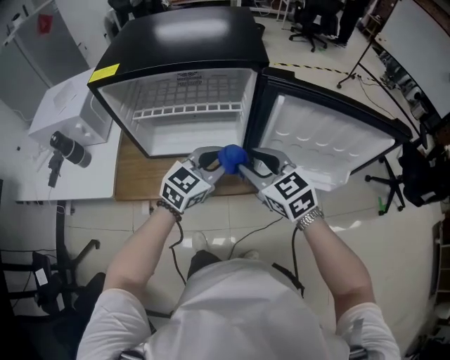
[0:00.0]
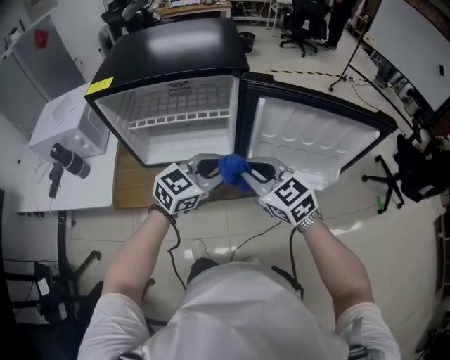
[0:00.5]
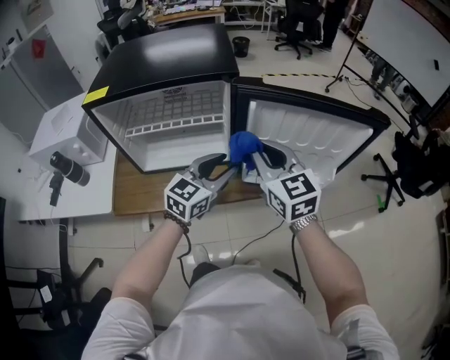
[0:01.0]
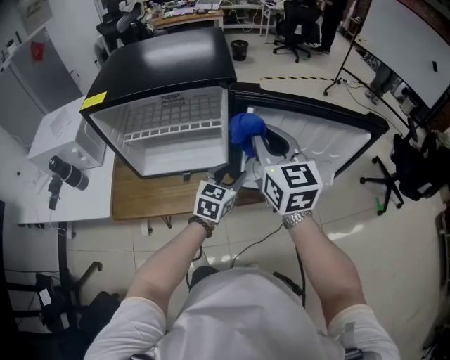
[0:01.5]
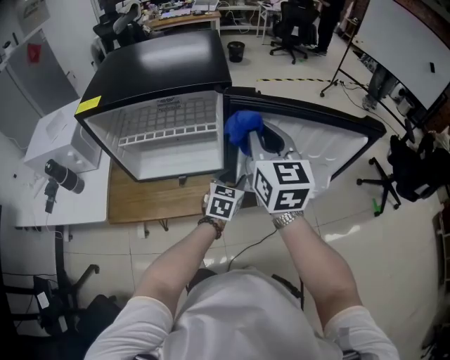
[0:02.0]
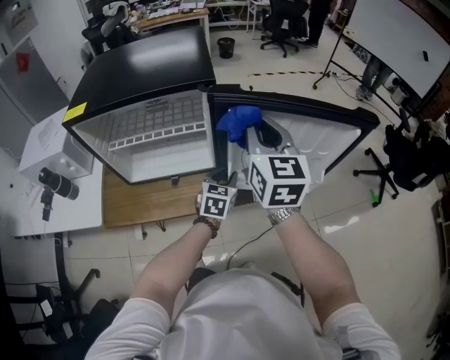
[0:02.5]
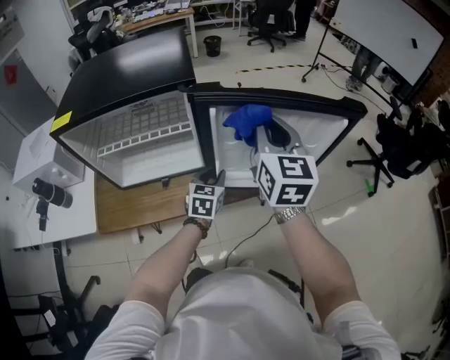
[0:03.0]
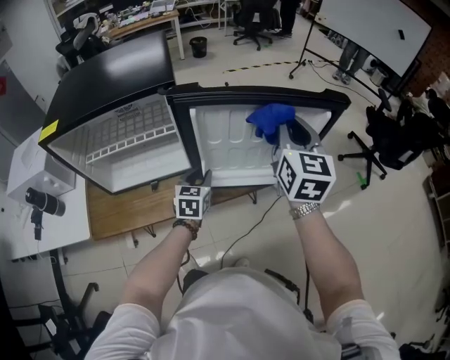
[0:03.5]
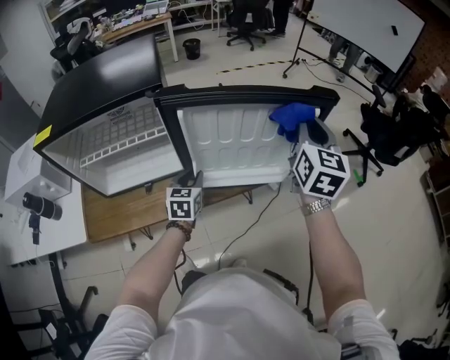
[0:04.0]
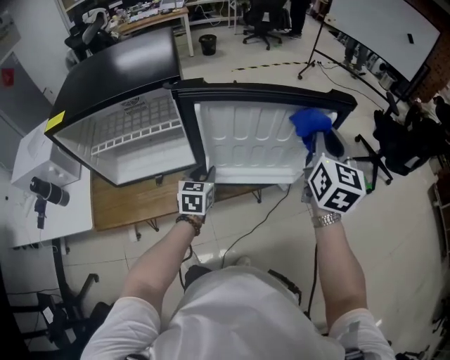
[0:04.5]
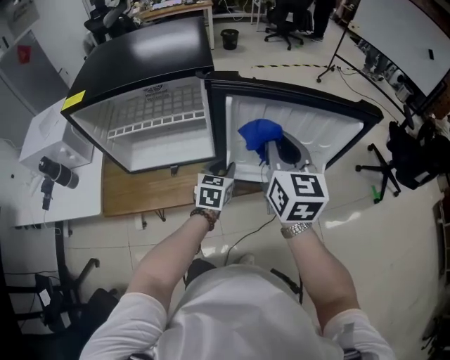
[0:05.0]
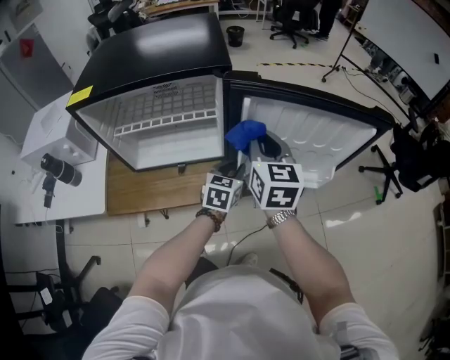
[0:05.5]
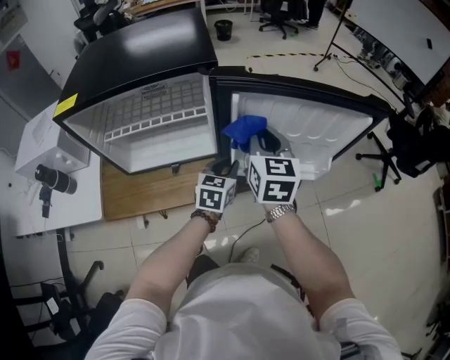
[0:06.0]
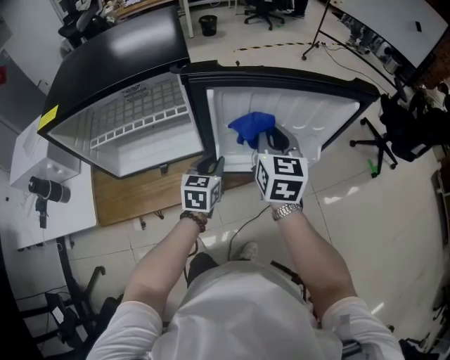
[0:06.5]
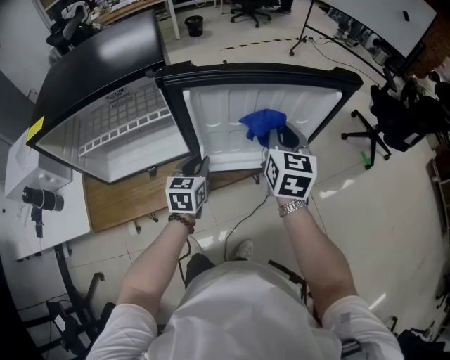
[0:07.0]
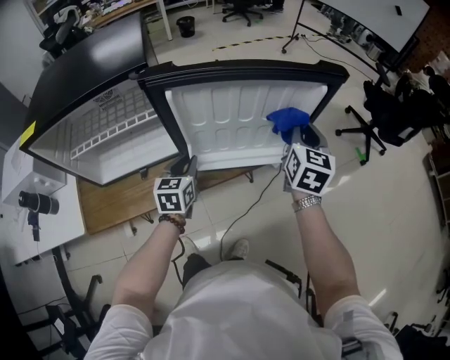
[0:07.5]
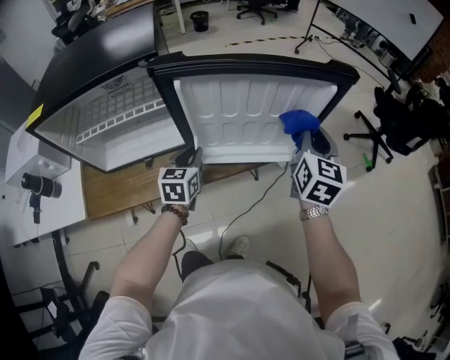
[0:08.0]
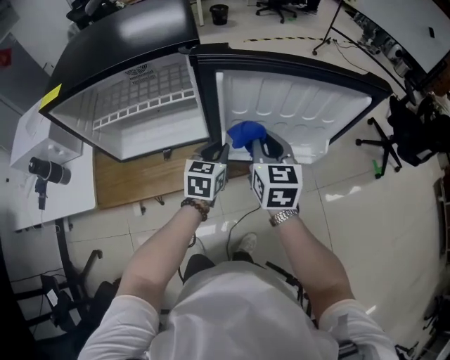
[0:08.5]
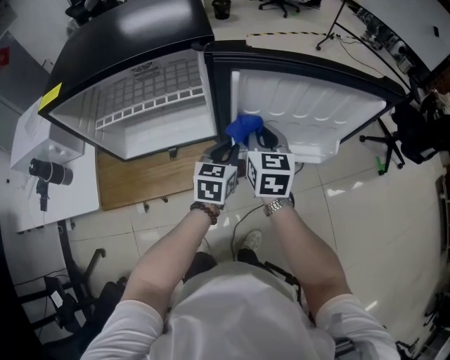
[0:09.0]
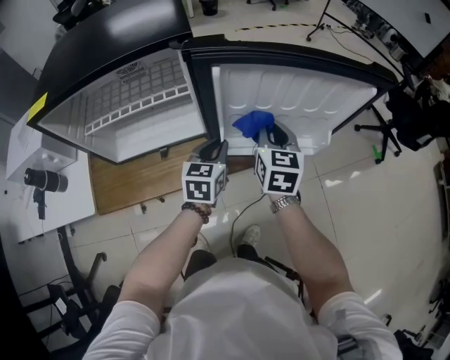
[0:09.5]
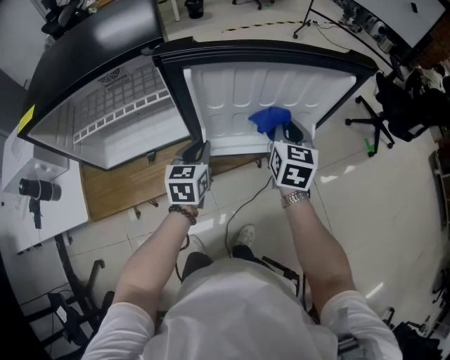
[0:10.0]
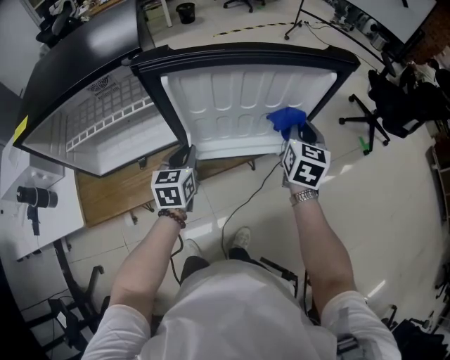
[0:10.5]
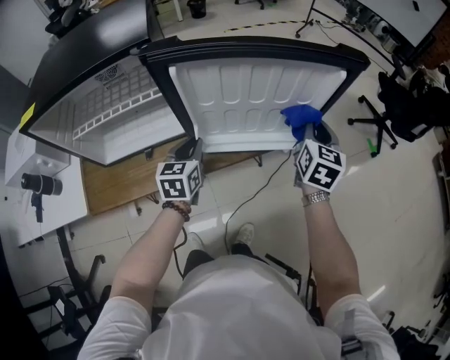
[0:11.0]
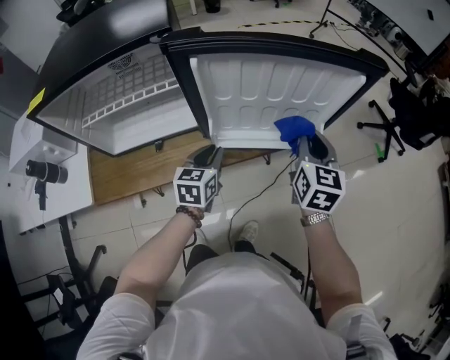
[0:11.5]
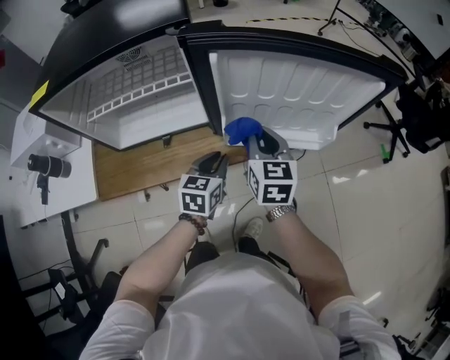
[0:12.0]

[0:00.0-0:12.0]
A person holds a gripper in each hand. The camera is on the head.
0:00.0 to 0:02.0: The right gripper is displaced upward, to the right and forward by roughly 20 cm, swivels roughly 40 degrees, and closes. The left gripper heads downward, to the right and forward, covering some 15 cm, swivels approximately 20 degrees, and opens up.
0:02.0 to 0:04.0: The right gripper travels to the right by about 25 cm, and rotates some 30 degrees.
0:04.0 to 0:06.0: The right gripper moves to the left and downward, about 25 cm.
0:06.0 to 0:08.0: The right gripper goes some 25 cm to the right.
0:08.0 to 0:10.0: The right gripper is displaced to the left and downward by some 10 cm.
0:10.0 to 0:12.0: The right gripper shifts some 15 cm to the left and backward. The left gripper shifts roughly 5 cm backward.

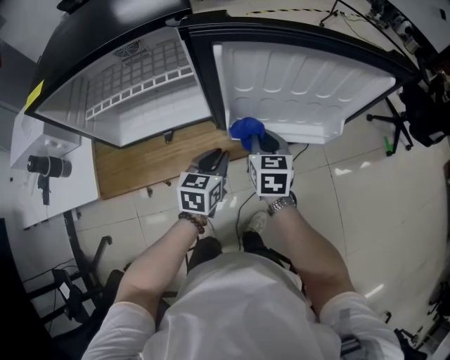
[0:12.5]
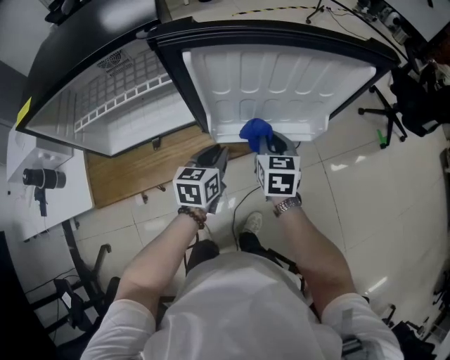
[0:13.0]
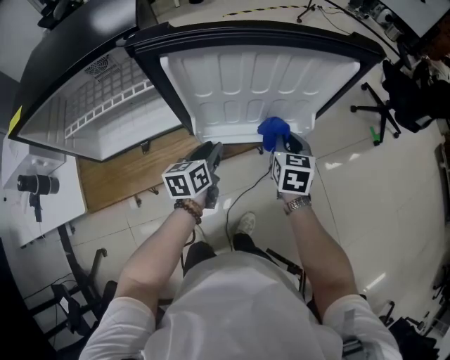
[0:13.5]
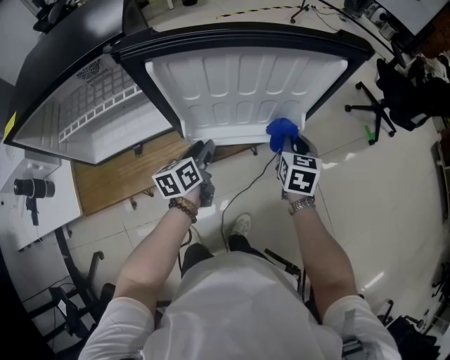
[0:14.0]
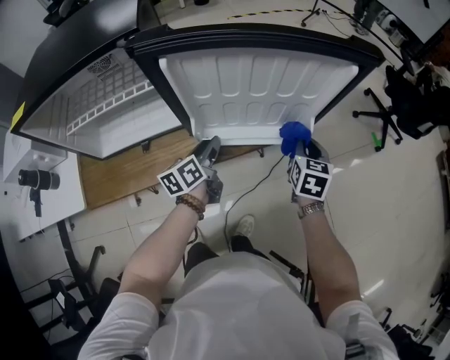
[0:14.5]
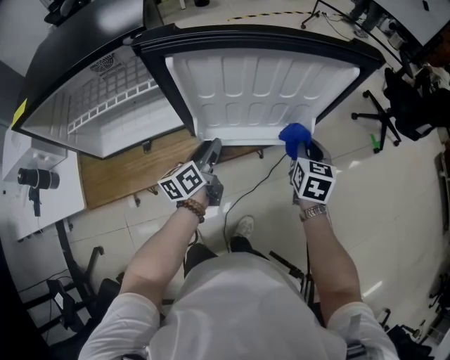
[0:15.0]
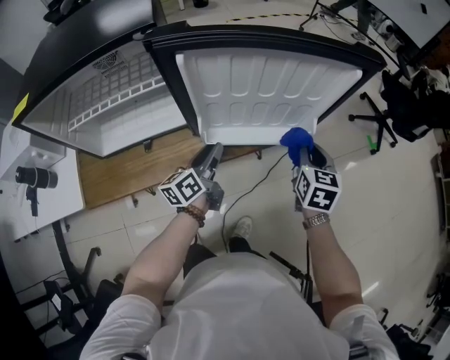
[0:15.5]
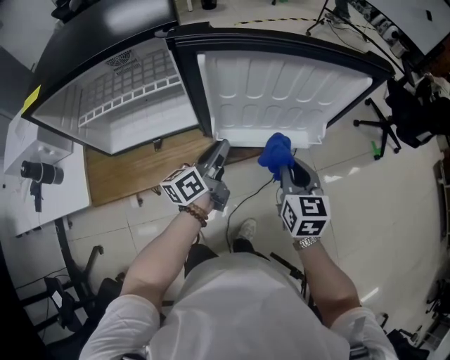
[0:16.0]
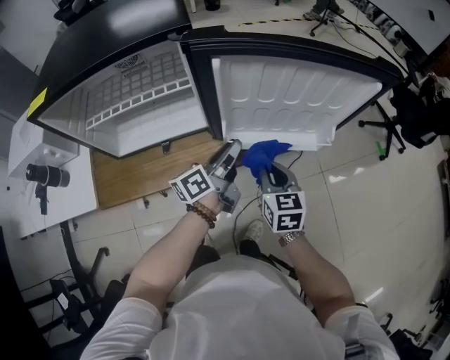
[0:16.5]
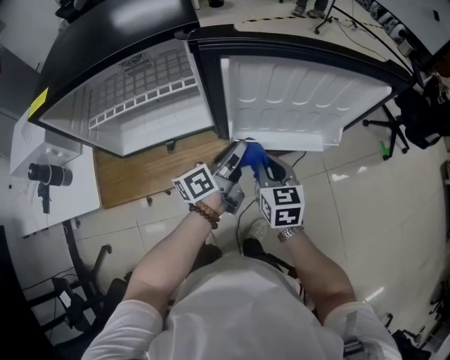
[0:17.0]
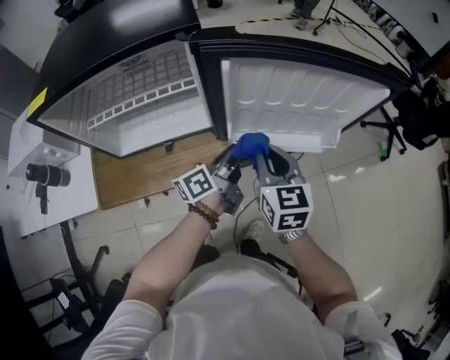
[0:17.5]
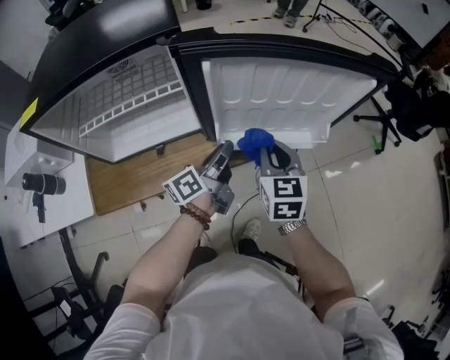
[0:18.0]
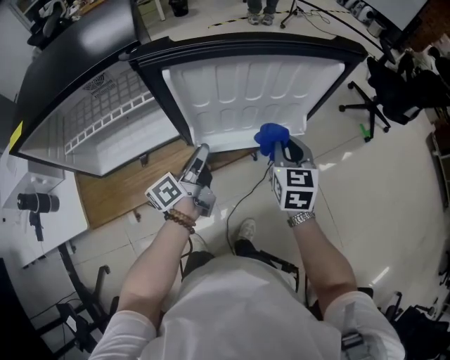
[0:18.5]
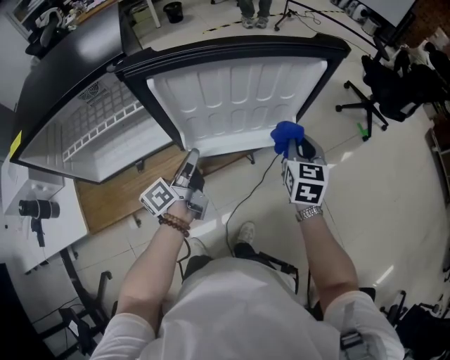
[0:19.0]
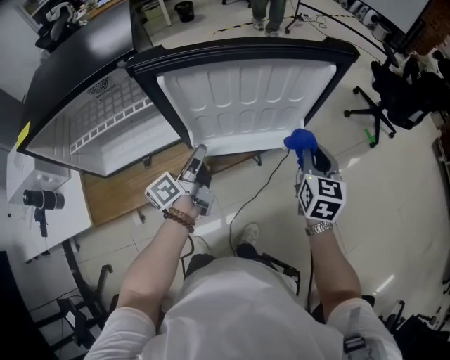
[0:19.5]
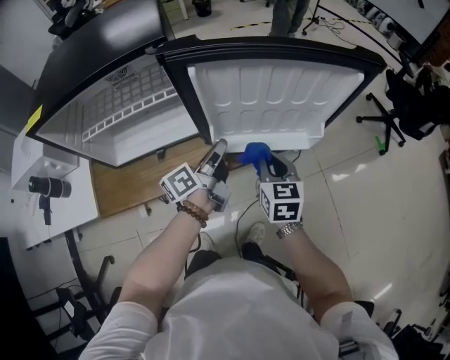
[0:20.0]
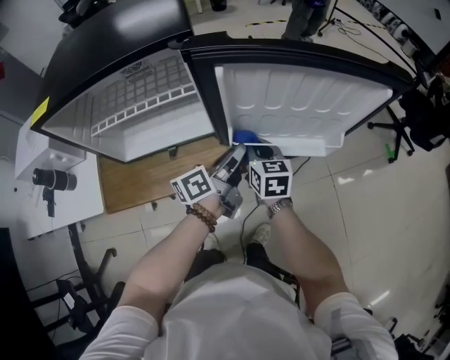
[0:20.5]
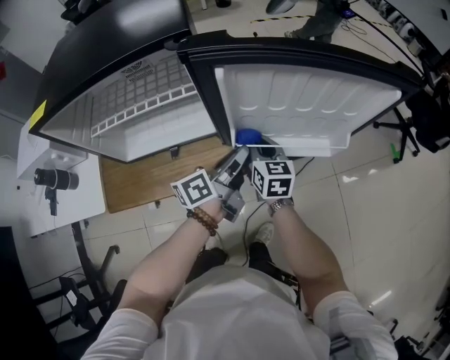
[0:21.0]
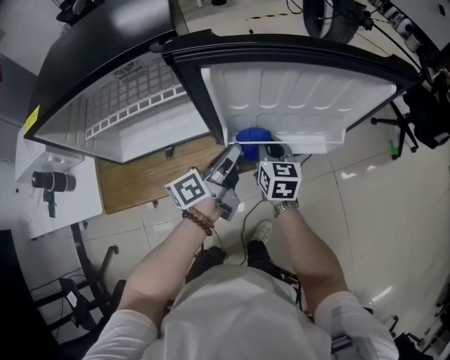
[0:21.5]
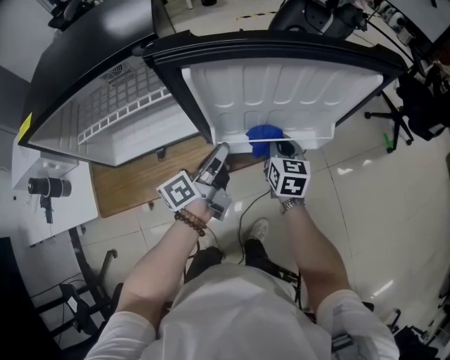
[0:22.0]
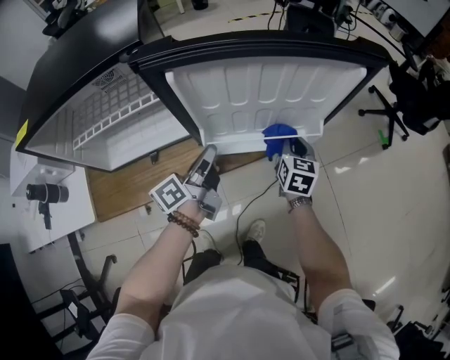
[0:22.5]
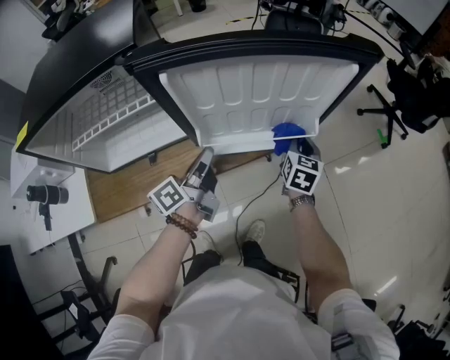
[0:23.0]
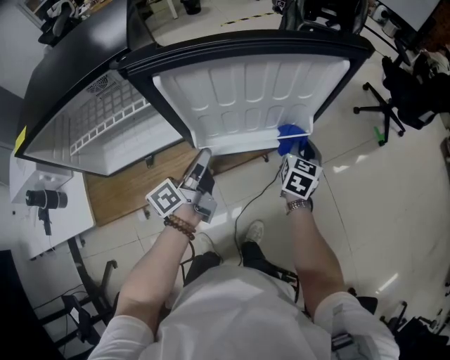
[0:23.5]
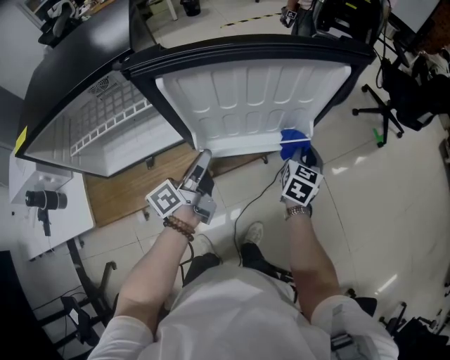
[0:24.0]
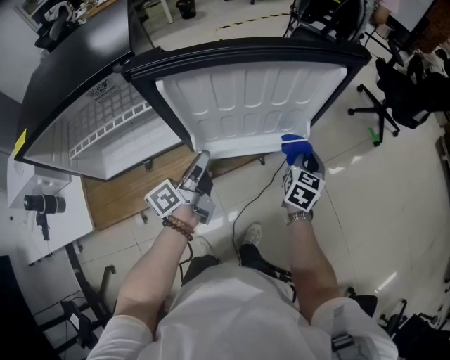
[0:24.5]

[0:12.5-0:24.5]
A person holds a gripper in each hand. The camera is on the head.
0:12.5 to 0:14.5: The right gripper goes about 20 cm to the right, while the left gripper travels forward by roughly 5 cm, turns by approximately 40 degrees, and opens.
0:14.5 to 0:16.5: The left gripper heads upward, covering some 5 cm, and turns by some 30 degrees. The right gripper heads to the left and backward, covering approximately 20 cm, and swivels about 20 degrees.
0:16.5 to 0:18.5: The right gripper moves to the right, forward and upward, roughly 15 cm.
0:18.5 to 0:20.5: The right gripper shifts approximately 20 cm to the left and downward, and rotates approximately 20 degrees.
0:20.5 to 0:22.5: The right gripper is displaced to the right by some 20 cm, and swivels some 20 degrees.
0:22.5 to 0:24.5: The right gripper goes approximately 10 cm to the right.

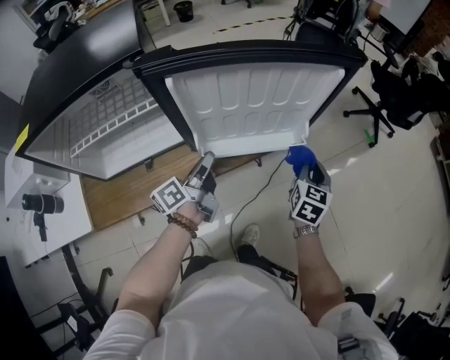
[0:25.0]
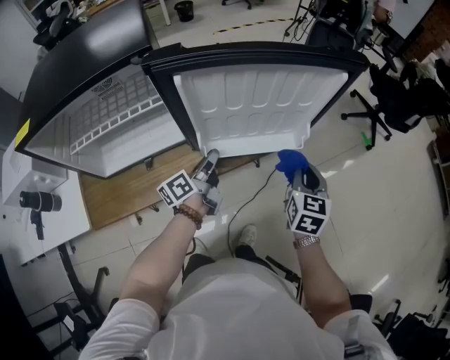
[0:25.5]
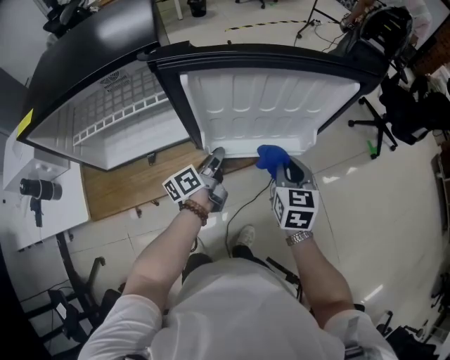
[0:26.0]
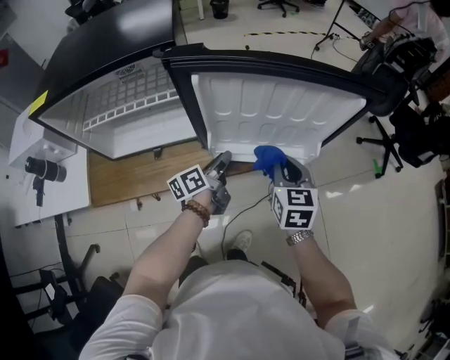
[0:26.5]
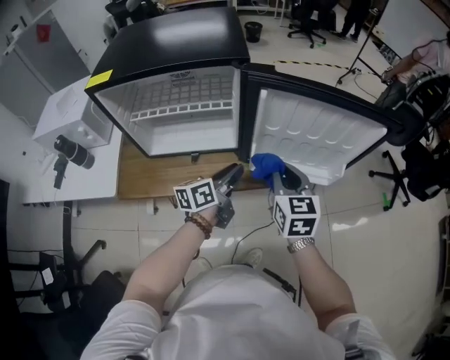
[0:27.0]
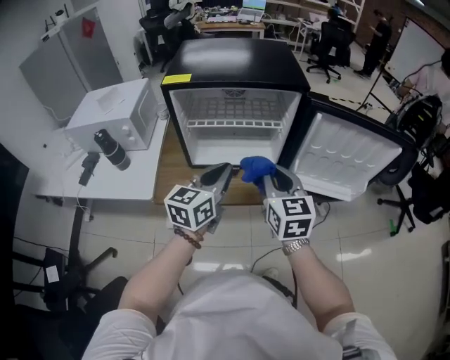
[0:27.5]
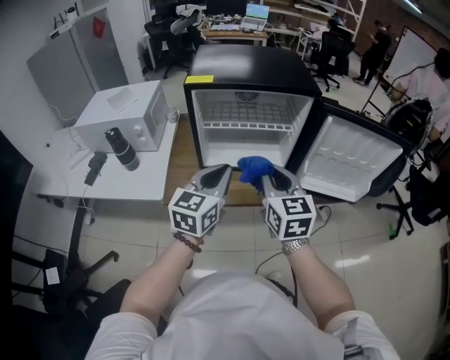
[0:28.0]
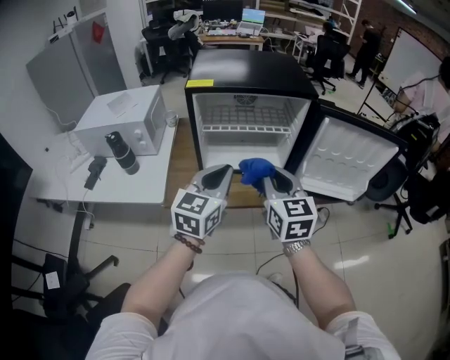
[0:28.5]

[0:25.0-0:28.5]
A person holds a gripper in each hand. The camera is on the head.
0:25.0 to 0:27.0: The left gripper shifts roughly 5 cm to the left, goes downward and returns, some 5 cm each way, and changes its angle by some 20 degrees. Meanwhile the right gripper goes approximately 25 cm to the left and upward, and turns by approximately 40 degrees.
0:27.0 to 0:28.5: Both grippers travel together to the left, upward and backward, about 30 cm. The left gripper rotates around the line of its fingers by some 50 degrees, clockwise from behind, and closes up.
